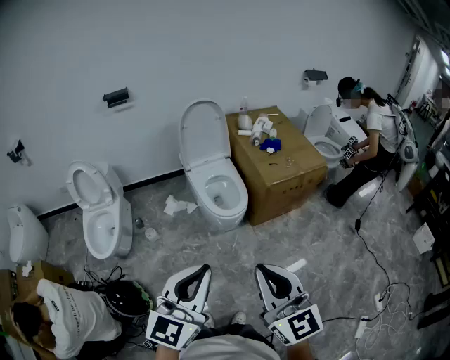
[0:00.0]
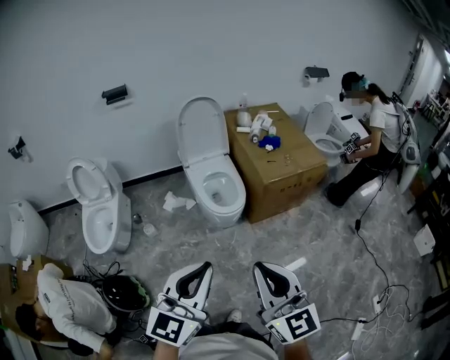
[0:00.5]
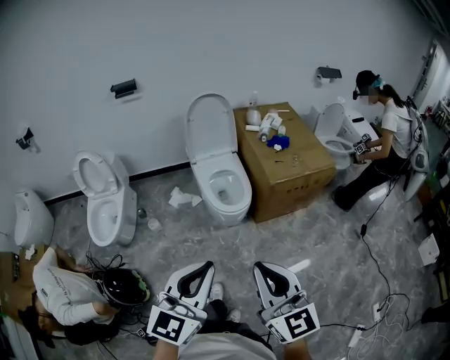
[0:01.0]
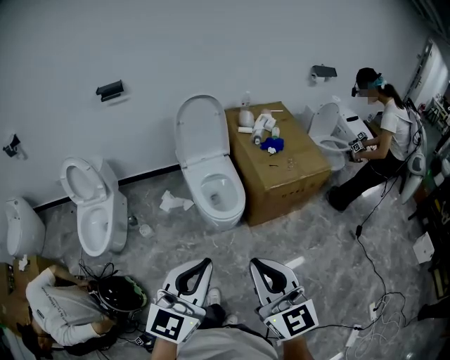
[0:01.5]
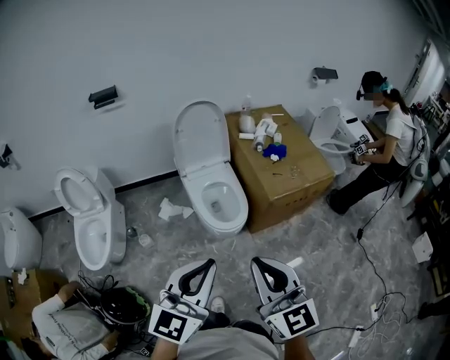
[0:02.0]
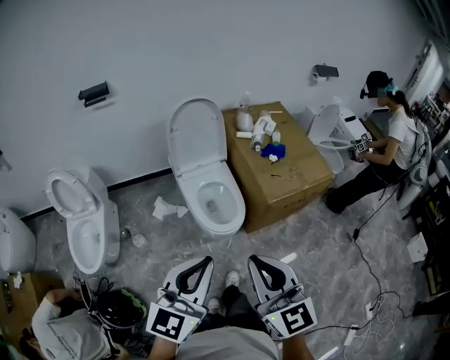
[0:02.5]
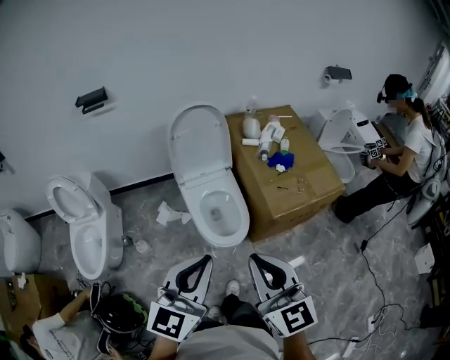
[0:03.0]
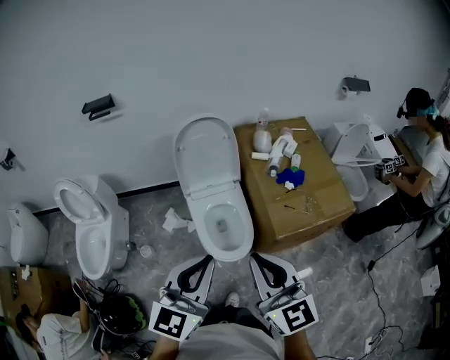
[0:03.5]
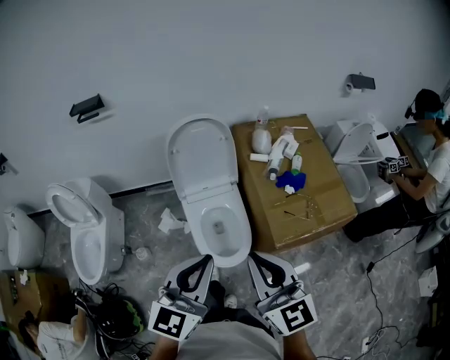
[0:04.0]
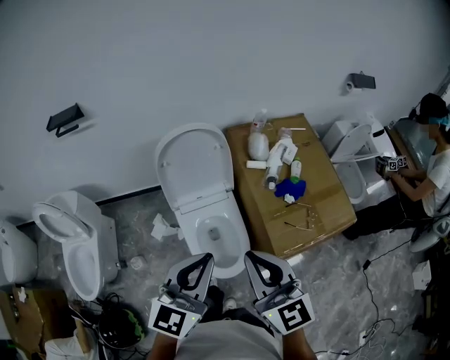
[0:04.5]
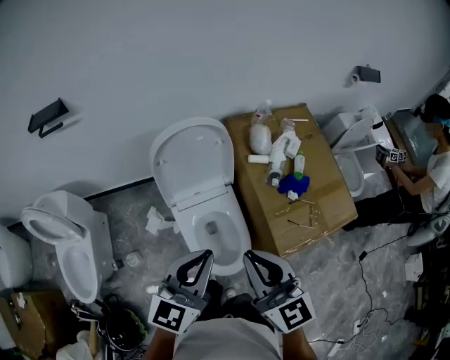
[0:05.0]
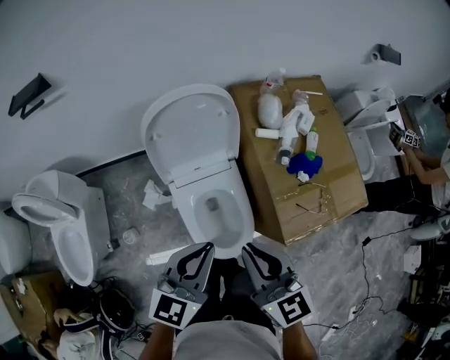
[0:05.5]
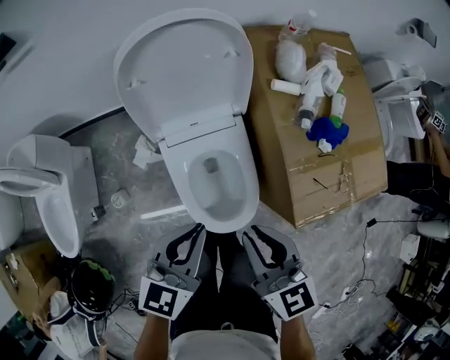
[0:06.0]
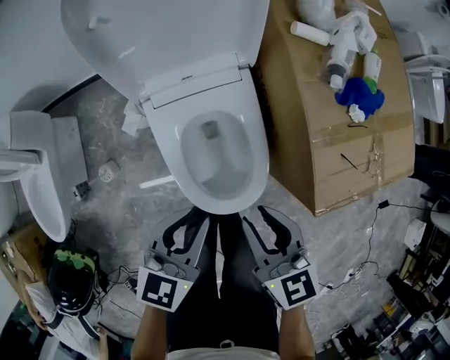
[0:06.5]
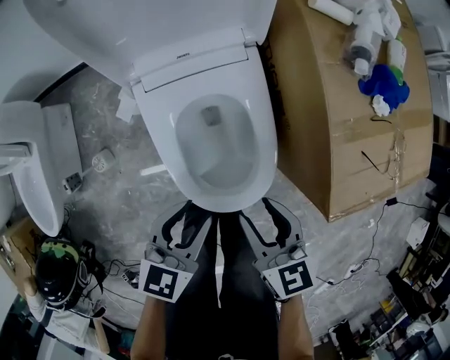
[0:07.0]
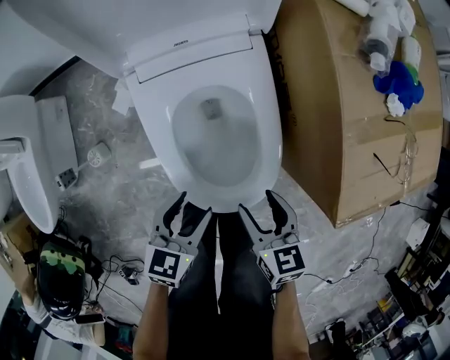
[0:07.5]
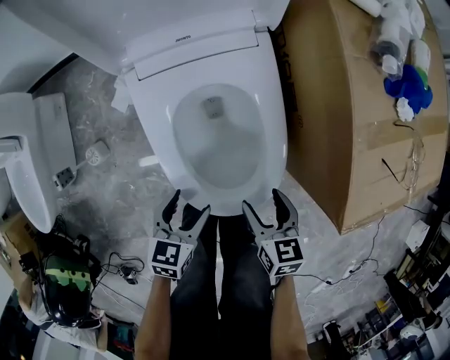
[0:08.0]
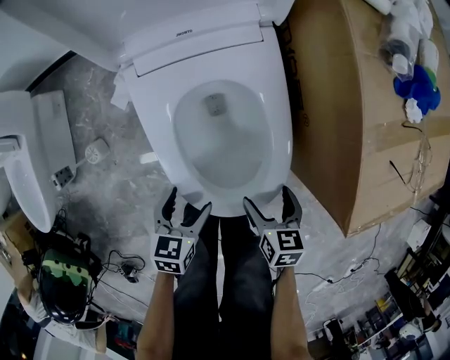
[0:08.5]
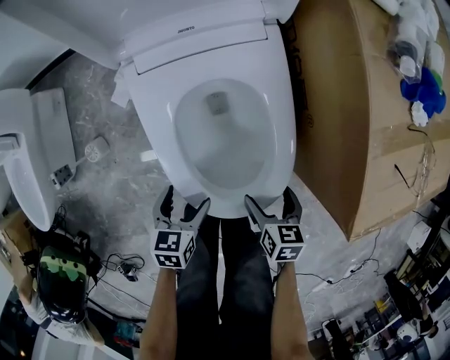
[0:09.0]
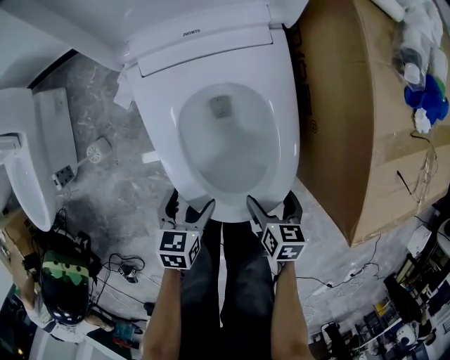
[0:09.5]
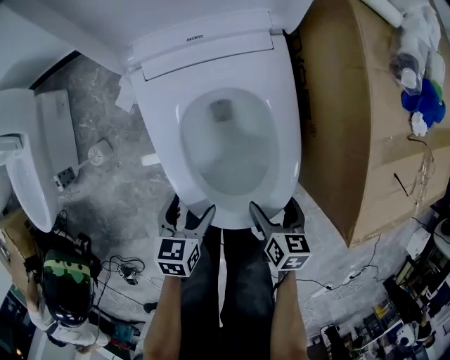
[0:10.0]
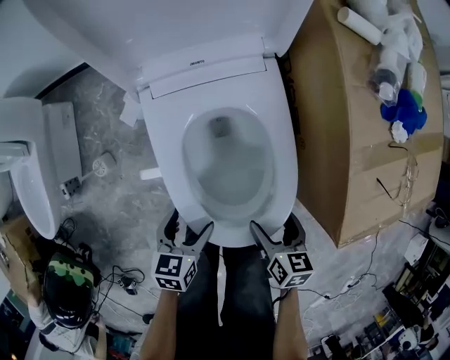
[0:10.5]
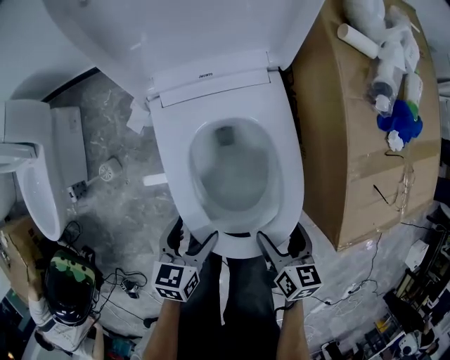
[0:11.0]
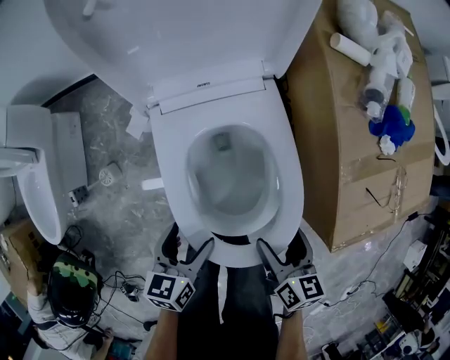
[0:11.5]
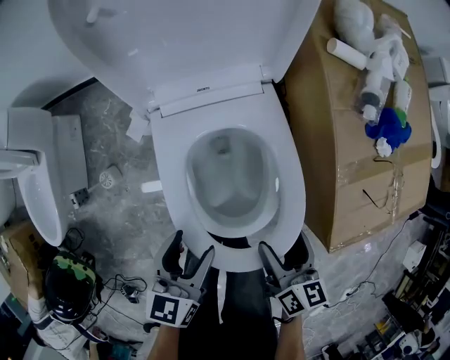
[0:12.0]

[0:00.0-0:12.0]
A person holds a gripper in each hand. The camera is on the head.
0:00.0 to 0:02.0: The grippers both shift forward by some 20 cm.
0:02.0 to 0:04.0: The two grippers go about 30 cm forward.
0:04.0 to 0:06.0: Both grippers travel together downward and forward, about 35 cm. The left gripper changes its angle by roughly 30 degrees. The right gripper changes its angle by roughly 30 degrees.
0:06.0 to 0:08.0: The two grippers go some 40 cm downward. The left gripper swivels about 30 degrees, and opens up; the right gripper rotates approximately 30 degrees, and opens its fingers.
0:08.0 to 0:10.0: The right gripper travels downward by roughly 5 cm.
0:10.0 to 0:12.0: Both grippers move upward, roughly 20 cm. The right gripper changes its angle by some 20 degrees, while the left gripper rotates approximately 20 degrees.

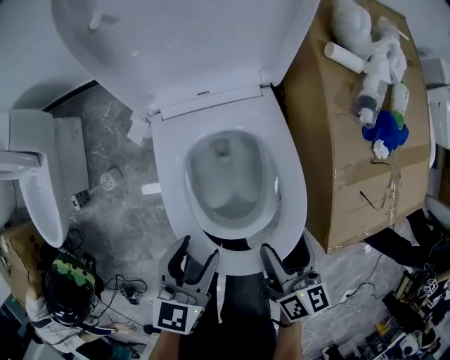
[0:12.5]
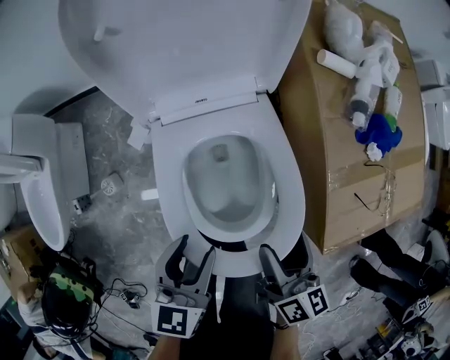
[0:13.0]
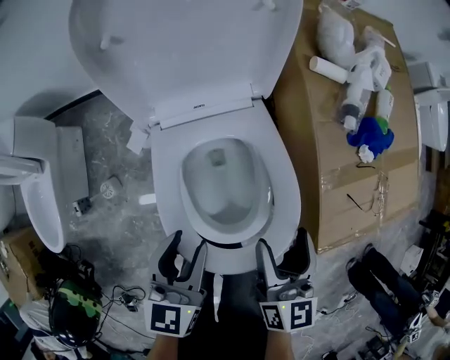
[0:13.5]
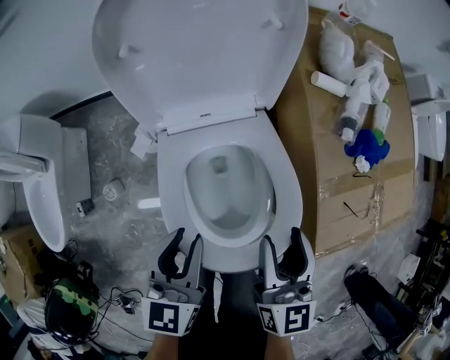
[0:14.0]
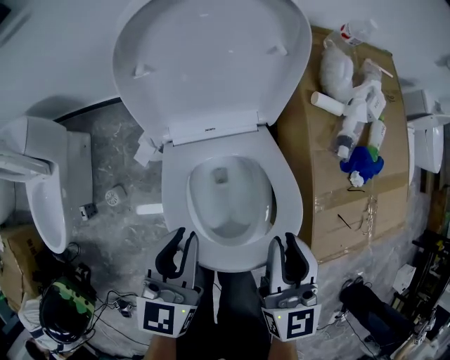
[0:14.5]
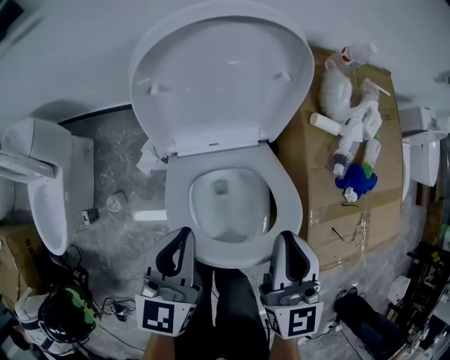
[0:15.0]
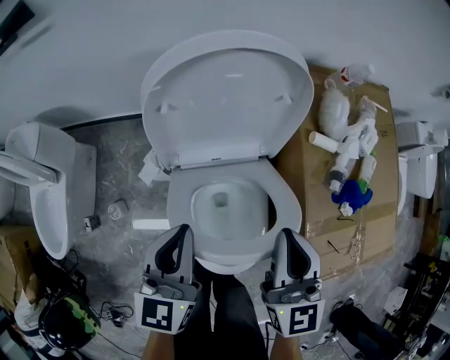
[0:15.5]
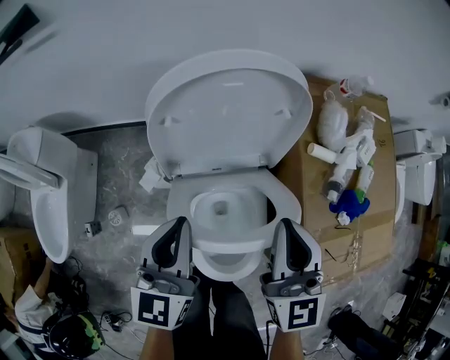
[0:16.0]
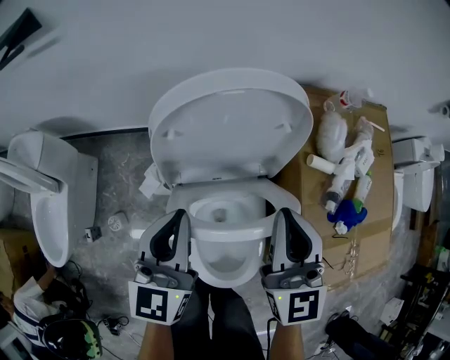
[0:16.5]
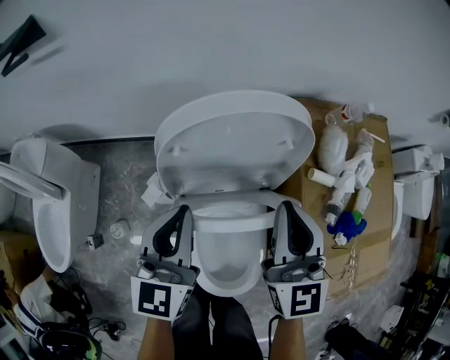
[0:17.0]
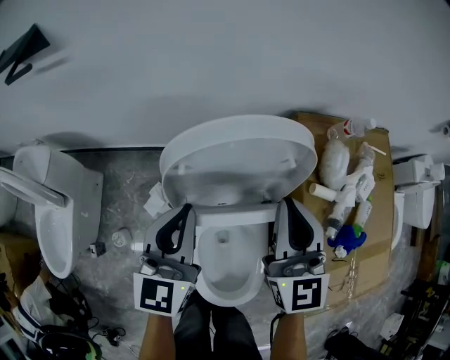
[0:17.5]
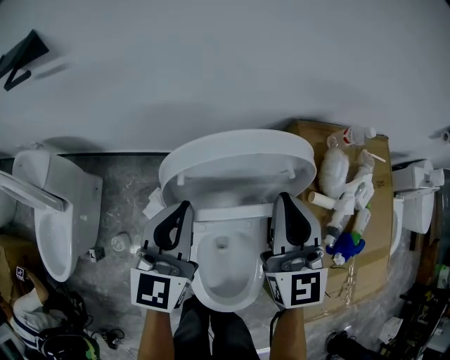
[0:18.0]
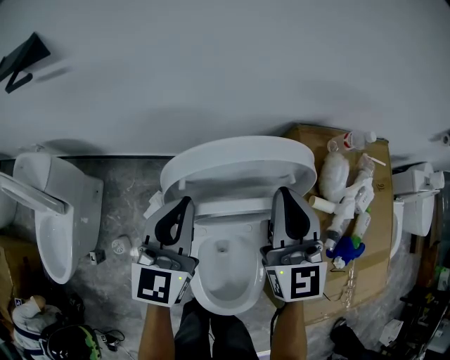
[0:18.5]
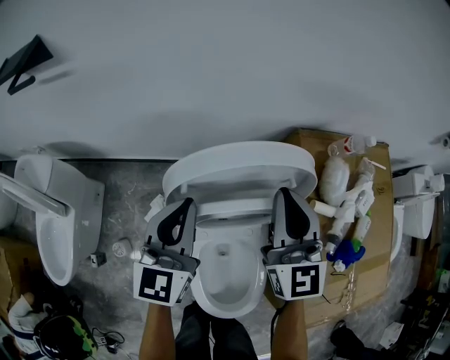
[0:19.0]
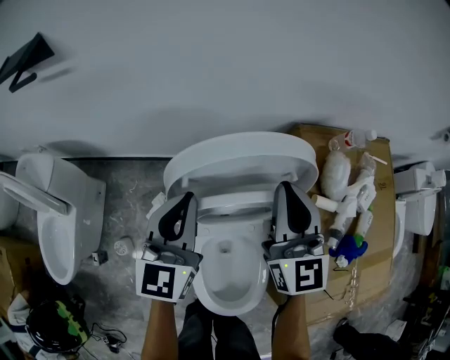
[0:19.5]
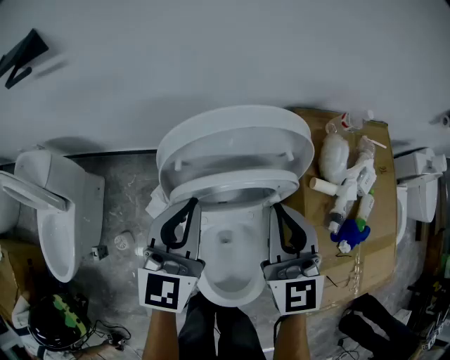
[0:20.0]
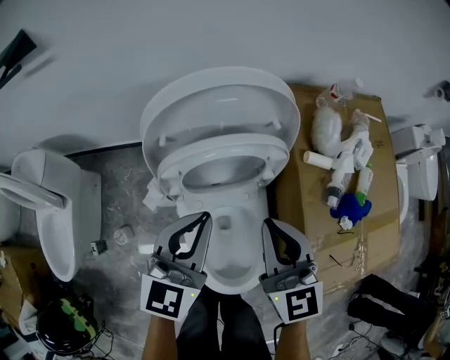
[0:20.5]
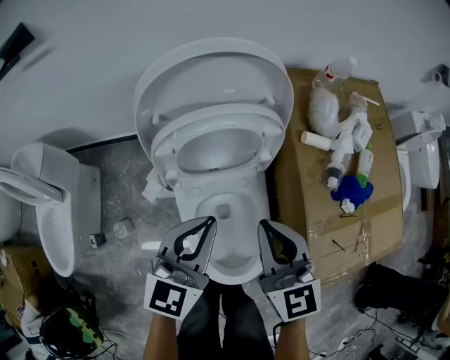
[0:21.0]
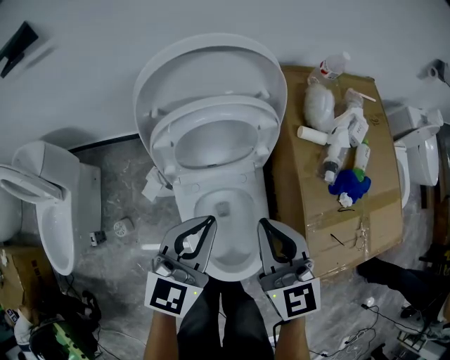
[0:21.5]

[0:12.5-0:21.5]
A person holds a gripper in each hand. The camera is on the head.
0:12.5 to 0:14.5: Both grippers move upward and forward, roughly 15 cm. The left gripper closes its fingers. Meanwhile the right gripper swivels roughly 30 degrees, and closes.
0:14.5 to 0:17.0: The grippers both shift forward and upward by roughly 20 cm.
0:17.0 to 0:19.5: The grippers both shift forward by some 10 cm.
0:19.5 to 0:21.5: The left gripper is displaced backward and to the right by some 20 cm, and swivels approximately 20 degrees. The right gripper travels backward by about 25 cm.

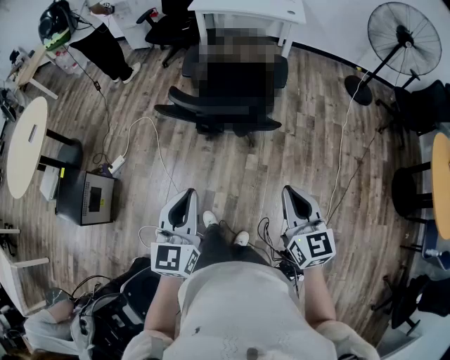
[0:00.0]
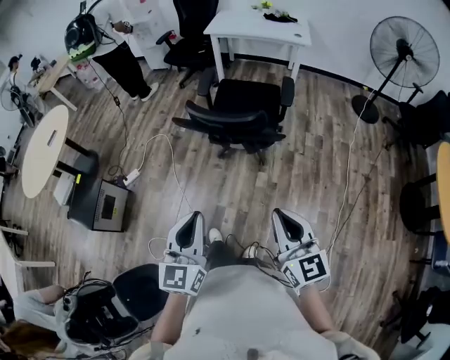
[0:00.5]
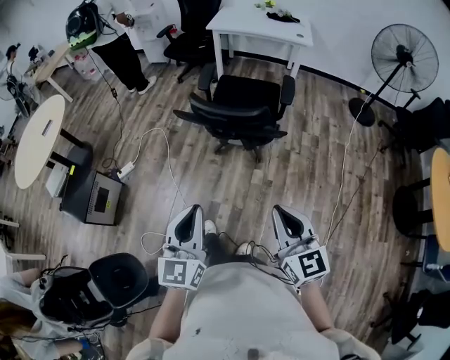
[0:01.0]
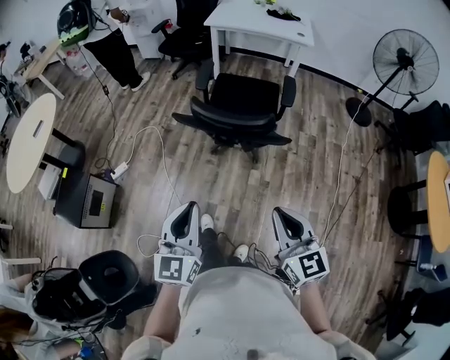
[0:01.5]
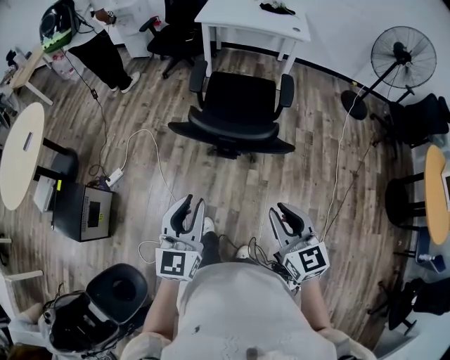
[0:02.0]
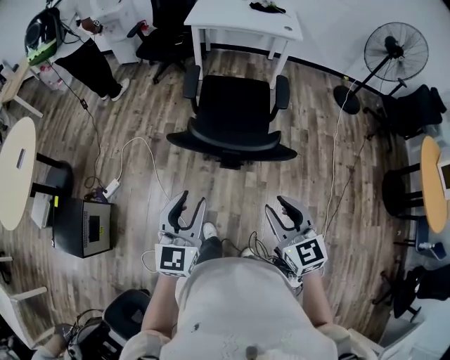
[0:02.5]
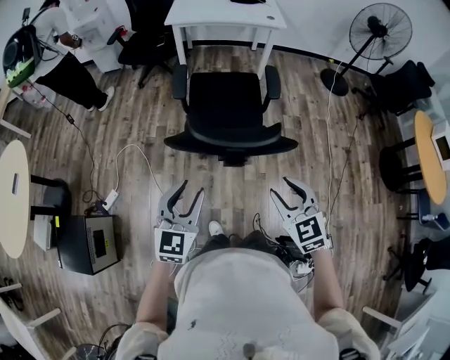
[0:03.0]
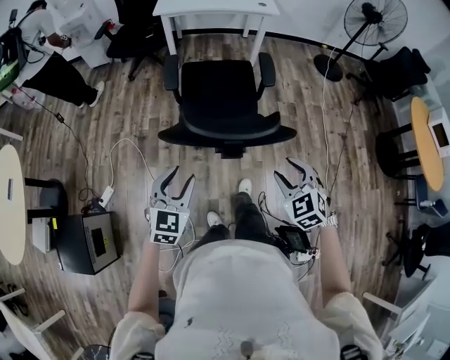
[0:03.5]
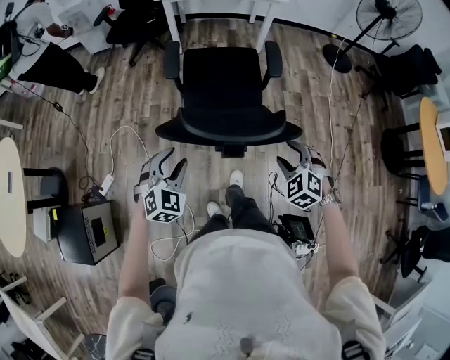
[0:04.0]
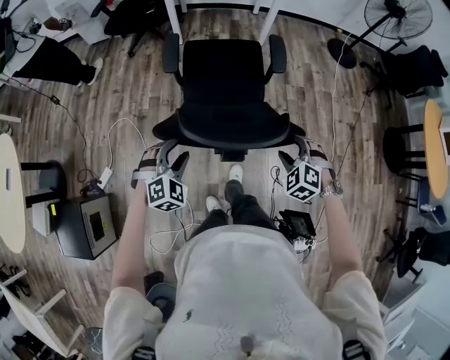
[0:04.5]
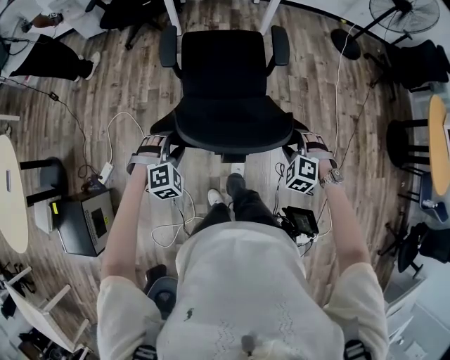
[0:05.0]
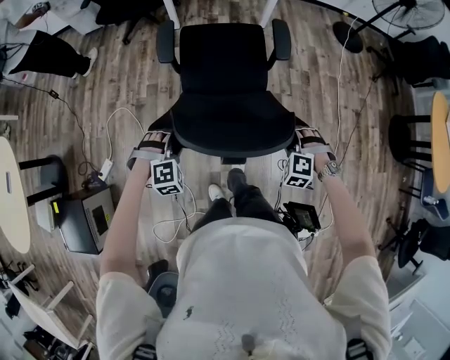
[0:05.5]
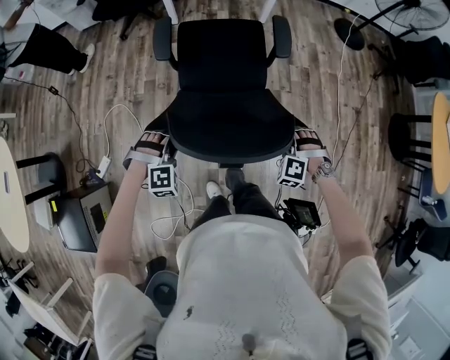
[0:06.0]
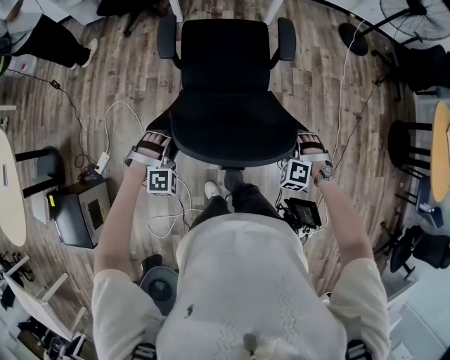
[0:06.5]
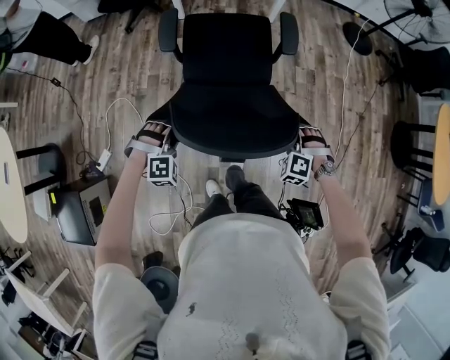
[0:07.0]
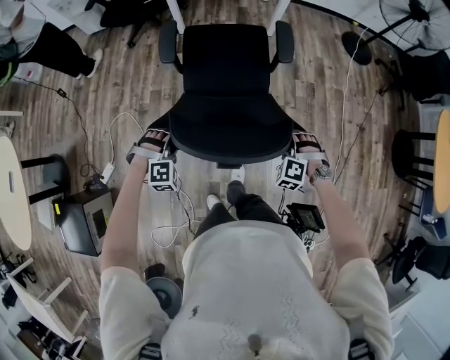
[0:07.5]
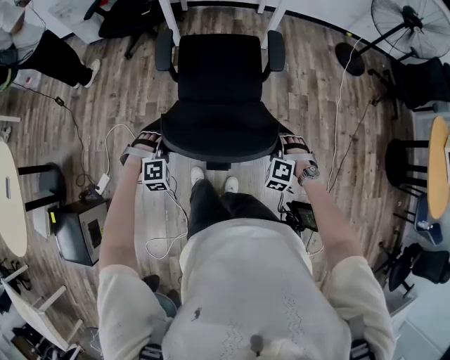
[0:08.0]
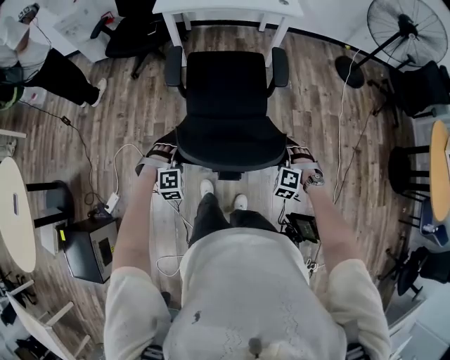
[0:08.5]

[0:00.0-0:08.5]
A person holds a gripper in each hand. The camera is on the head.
0:00.0 to 0:02.0: The right gripper heads to the left, covering about 15 cm, and moves some 15 cm backward and comes back; the left gripper is displaced to the left and forward by about 15 cm.
0:02.0 to 0:04.0: The right gripper shifts approximately 30 cm forward and downward, tilts its fingers roughly 30 degrees downward, and opens up. Meanwhile the left gripper moves forward, downward and to the left, some 35 cm, turns by some 50 degrees, and opens its fingers.
0:04.0 to 0:06.5: The left gripper travels downward and forward by some 20 cm, twists about 40 degrees clockwise, seen from behind, and closes up; the right gripper shifts some 20 cm forward and downward, rotates roughly 30 degrees, and closes.
0:06.5 to 0:08.5: Both grippers move forward, roughly 15 cm.
